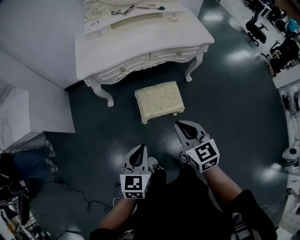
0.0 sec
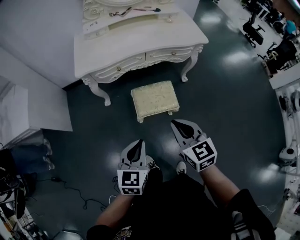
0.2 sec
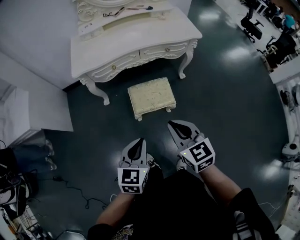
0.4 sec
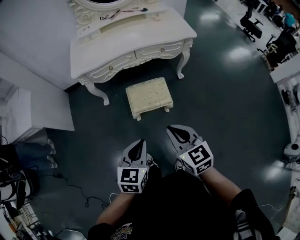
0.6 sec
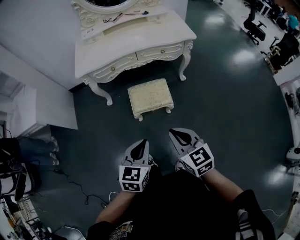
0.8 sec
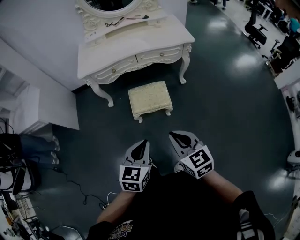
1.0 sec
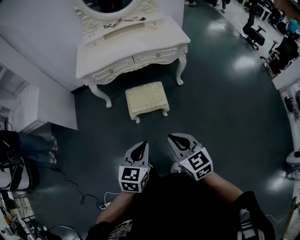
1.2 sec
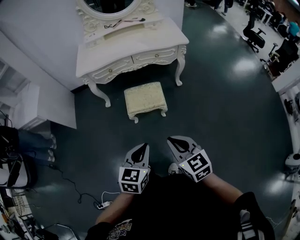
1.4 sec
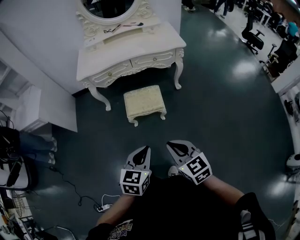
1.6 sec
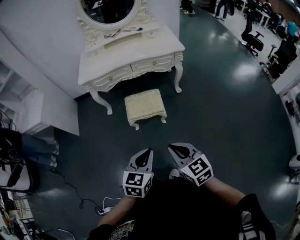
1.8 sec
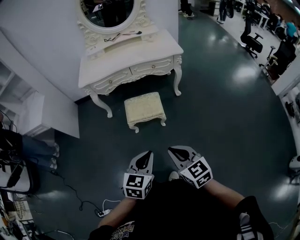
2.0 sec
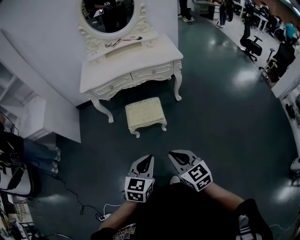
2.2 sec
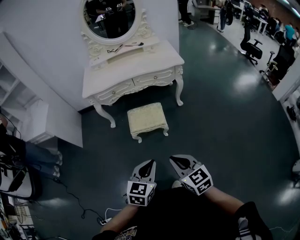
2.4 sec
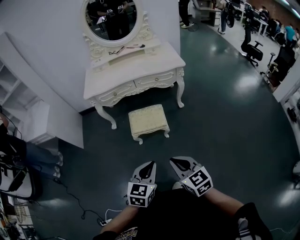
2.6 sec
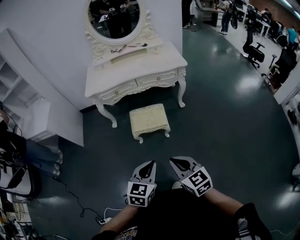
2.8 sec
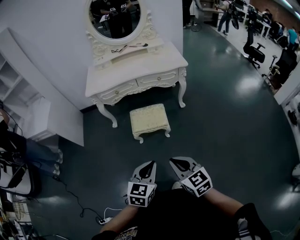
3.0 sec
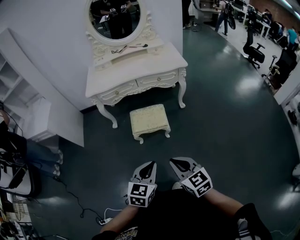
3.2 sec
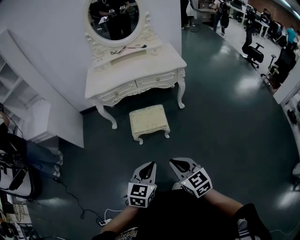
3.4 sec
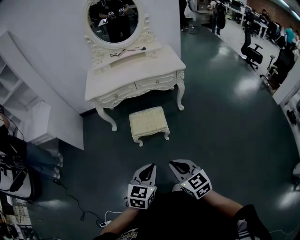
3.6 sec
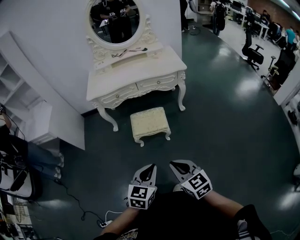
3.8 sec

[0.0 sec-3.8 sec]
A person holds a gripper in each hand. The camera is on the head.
0.0 sec to 1.2 sec: The right gripper shifts approximately 25 cm backward and to the right; the left gripper goes some 25 cm to the right, backward and upward.
1.2 sec to 2.6 sec: The left gripper is displaced backward and to the right by roughly 10 cm, while the right gripper travels backward by some 5 cm.
2.6 sec to 3.8 sec: There are only small adjustments of the grippers.

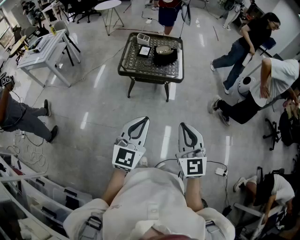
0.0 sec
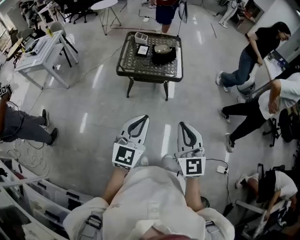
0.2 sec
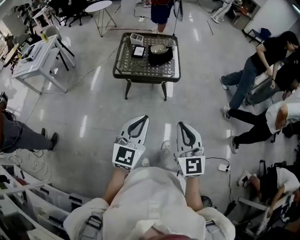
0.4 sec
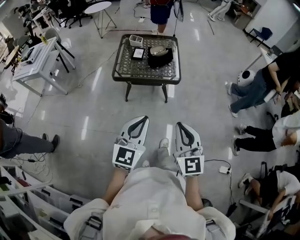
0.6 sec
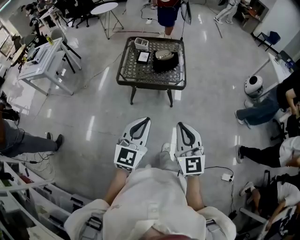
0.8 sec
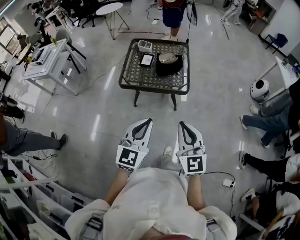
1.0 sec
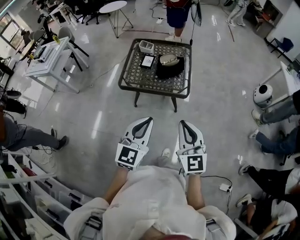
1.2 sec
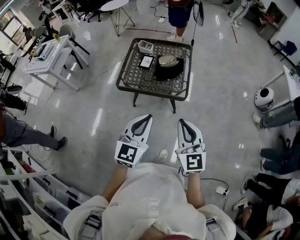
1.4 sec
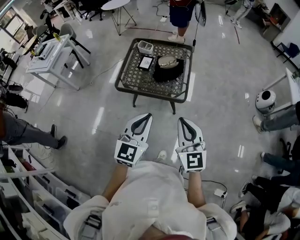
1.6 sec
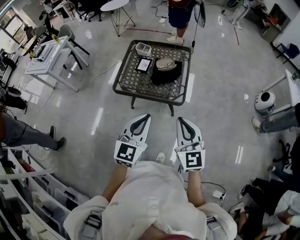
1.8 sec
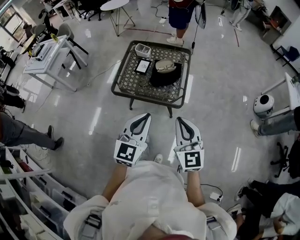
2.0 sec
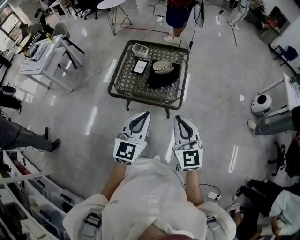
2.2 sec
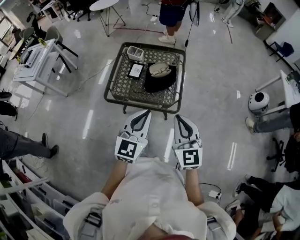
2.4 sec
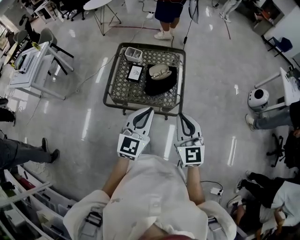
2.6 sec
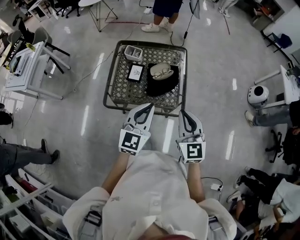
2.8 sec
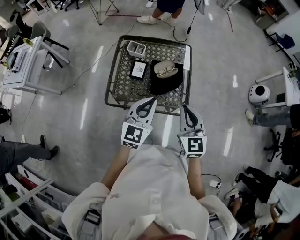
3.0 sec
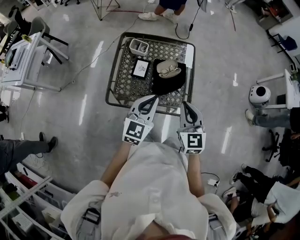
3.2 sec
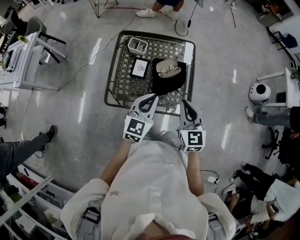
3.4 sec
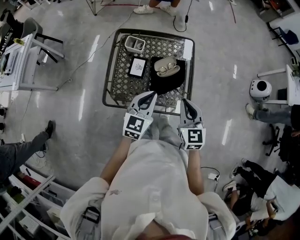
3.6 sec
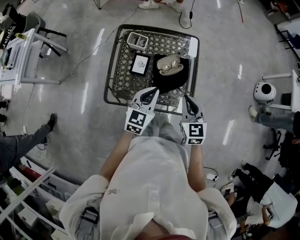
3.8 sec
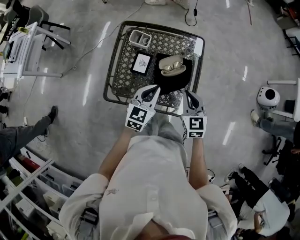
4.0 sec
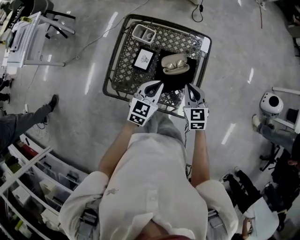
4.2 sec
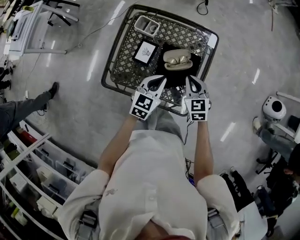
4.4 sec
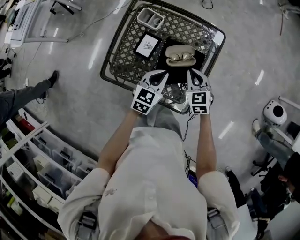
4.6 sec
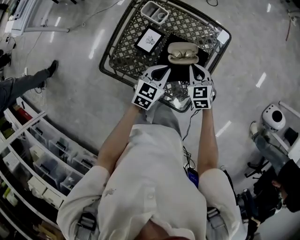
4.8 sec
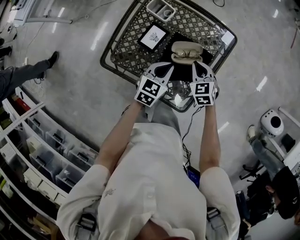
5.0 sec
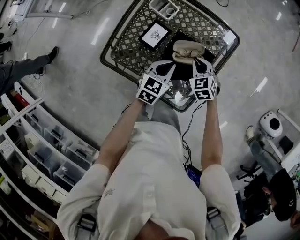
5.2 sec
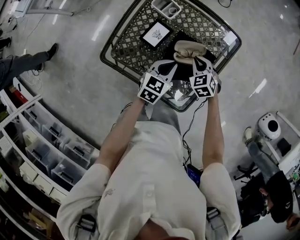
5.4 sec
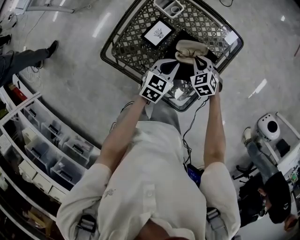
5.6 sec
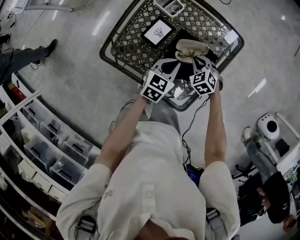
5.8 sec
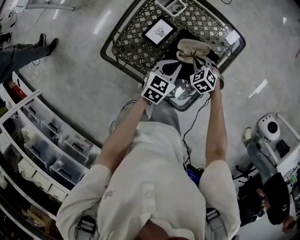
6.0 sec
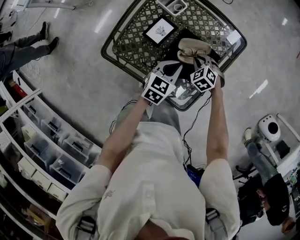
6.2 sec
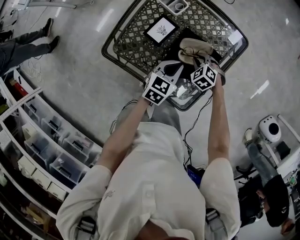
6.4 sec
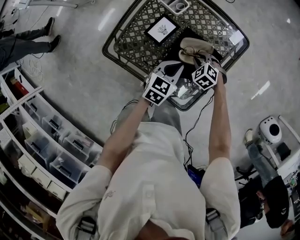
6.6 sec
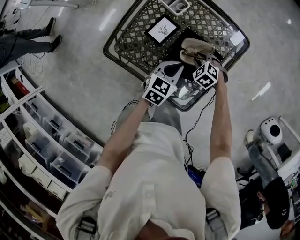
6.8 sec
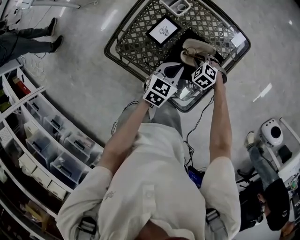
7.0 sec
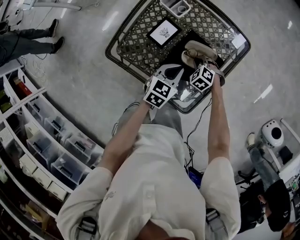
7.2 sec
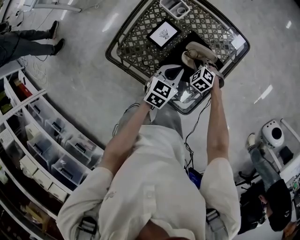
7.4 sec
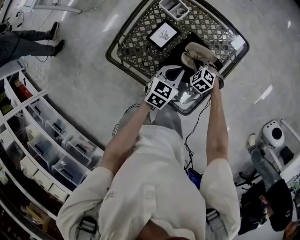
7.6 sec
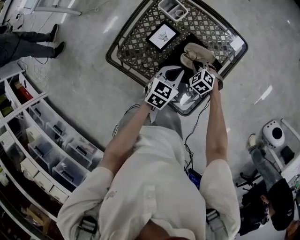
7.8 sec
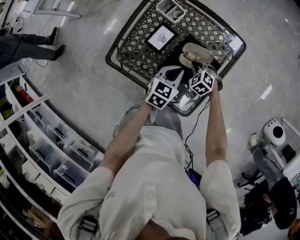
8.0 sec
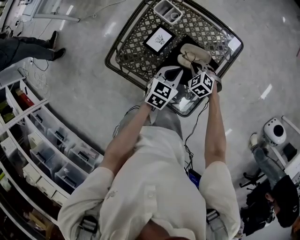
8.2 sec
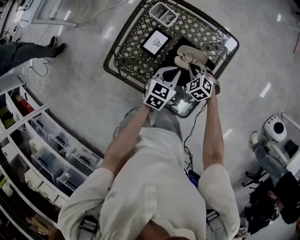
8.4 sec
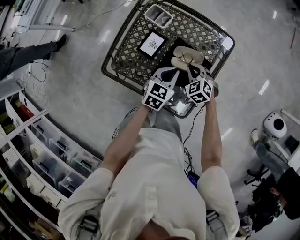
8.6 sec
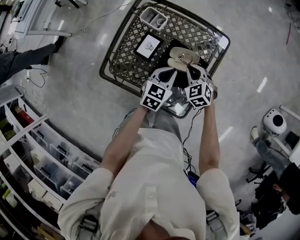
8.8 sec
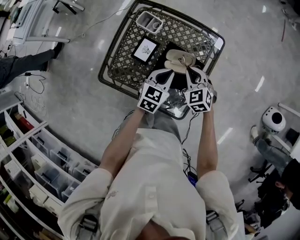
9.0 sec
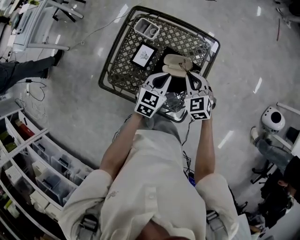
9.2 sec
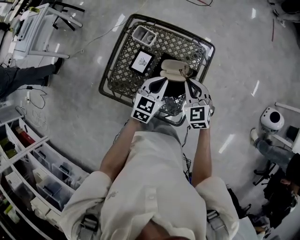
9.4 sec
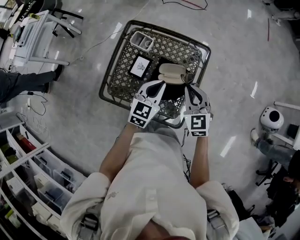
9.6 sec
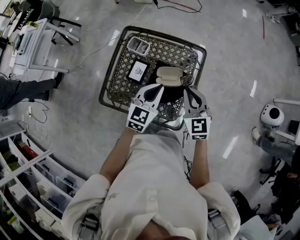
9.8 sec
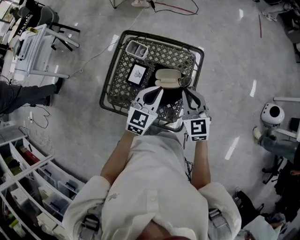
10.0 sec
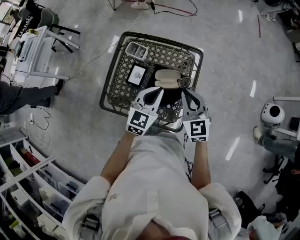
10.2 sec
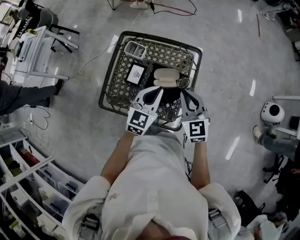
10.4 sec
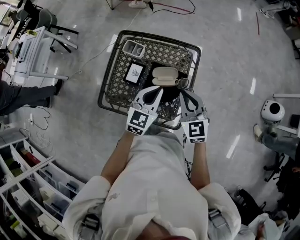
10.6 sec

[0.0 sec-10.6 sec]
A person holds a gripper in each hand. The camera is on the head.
0.0 sec to 1.6 sec: The grippers both shift forward by roughly 30 cm.
1.6 sec to 3.0 sec: The grippers both shift forward by some 25 cm.
3.0 sec to 4.6 sec: The left gripper shifts roughly 30 cm downward and forward, and changes its angle by approximately 30 degrees; the right gripper shifts about 35 cm forward and downward, and rotates approximately 30 degrees.
4.6 sec to 6.0 sec: The right gripper travels downward by about 15 cm, and turns by roughly 40 degrees; the left gripper is displaced downward by some 5 cm.
6.0 sec to 7.6 sec: The grippers make only small movements.
7.6 sec to 9.0 sec: The left gripper goes approximately 5 cm upward. The right gripper heads upward, covering approximately 15 cm, and swivels approximately 30 degrees.
9.0 sec to 10.6 sec: The left gripper shifts roughly 15 cm upward. The right gripper heads upward and backward, covering roughly 20 cm, and rotates some 30 degrees.

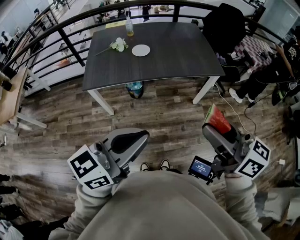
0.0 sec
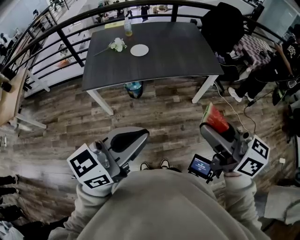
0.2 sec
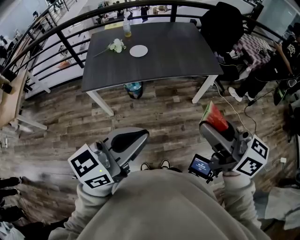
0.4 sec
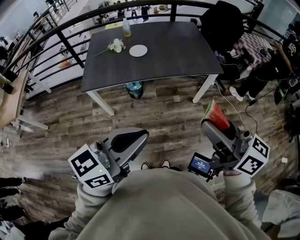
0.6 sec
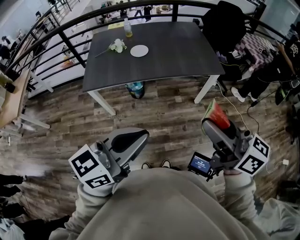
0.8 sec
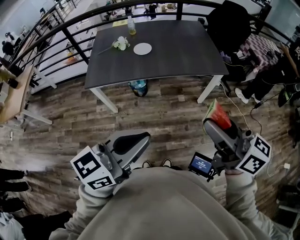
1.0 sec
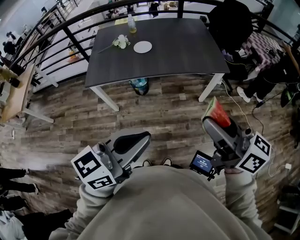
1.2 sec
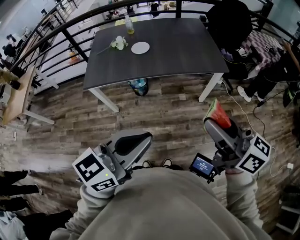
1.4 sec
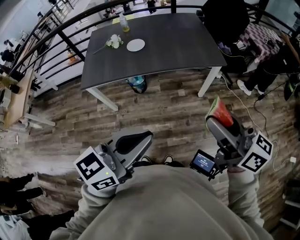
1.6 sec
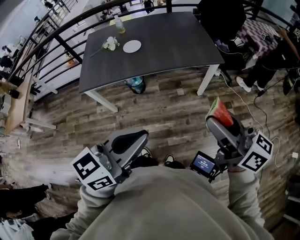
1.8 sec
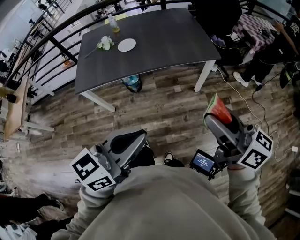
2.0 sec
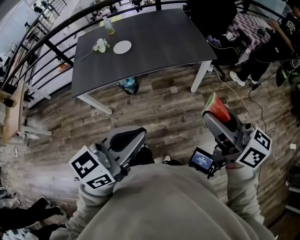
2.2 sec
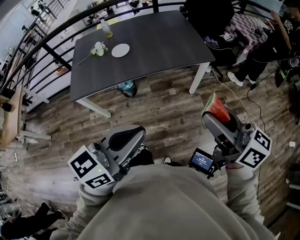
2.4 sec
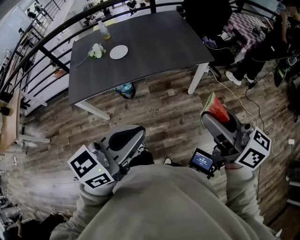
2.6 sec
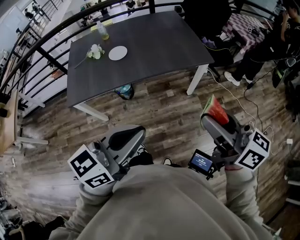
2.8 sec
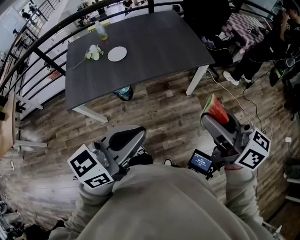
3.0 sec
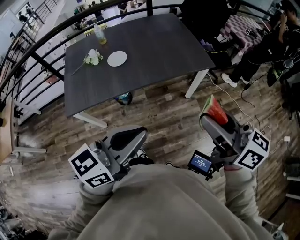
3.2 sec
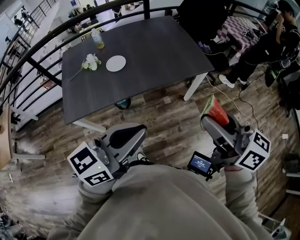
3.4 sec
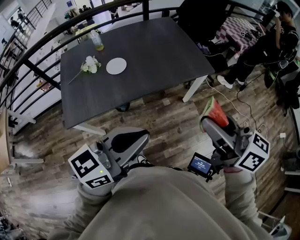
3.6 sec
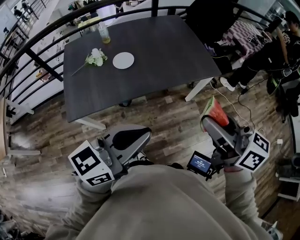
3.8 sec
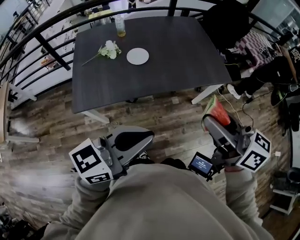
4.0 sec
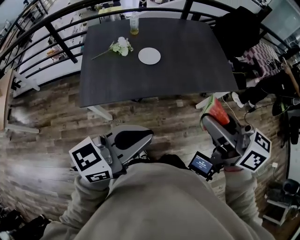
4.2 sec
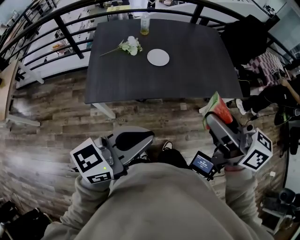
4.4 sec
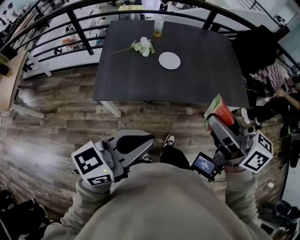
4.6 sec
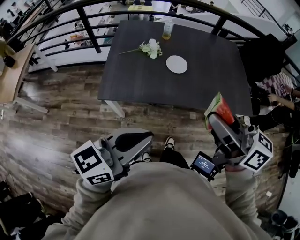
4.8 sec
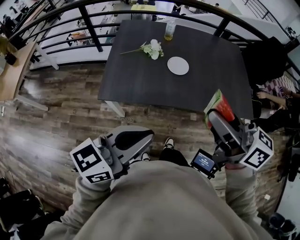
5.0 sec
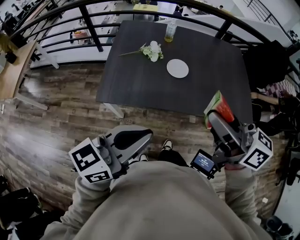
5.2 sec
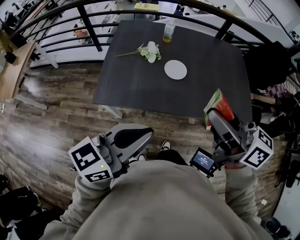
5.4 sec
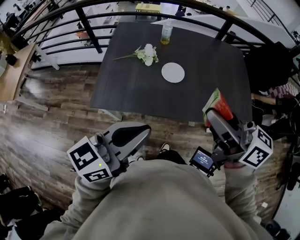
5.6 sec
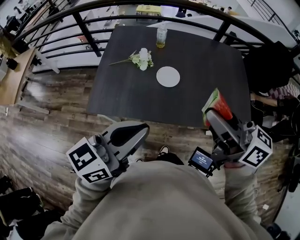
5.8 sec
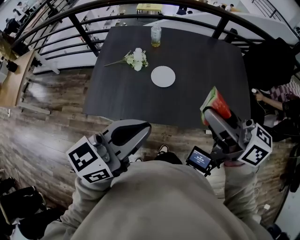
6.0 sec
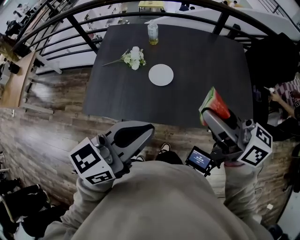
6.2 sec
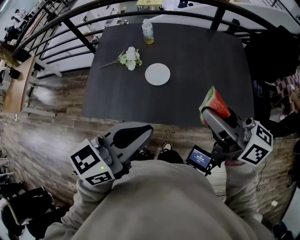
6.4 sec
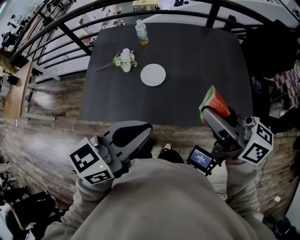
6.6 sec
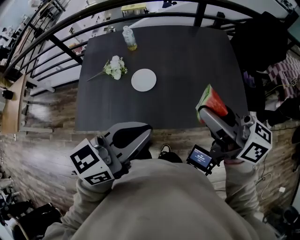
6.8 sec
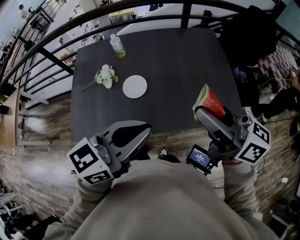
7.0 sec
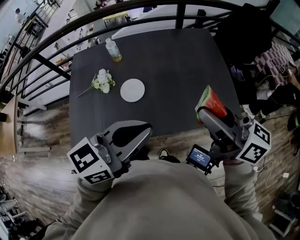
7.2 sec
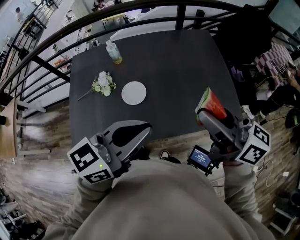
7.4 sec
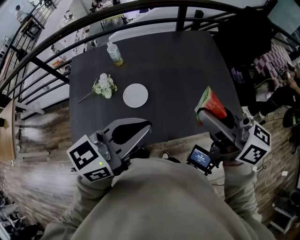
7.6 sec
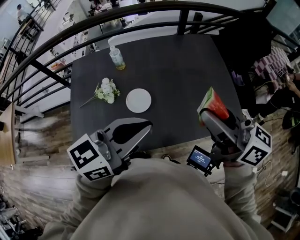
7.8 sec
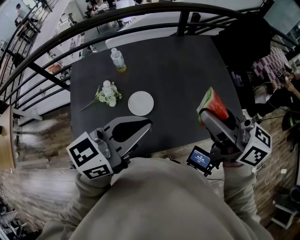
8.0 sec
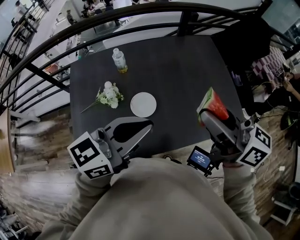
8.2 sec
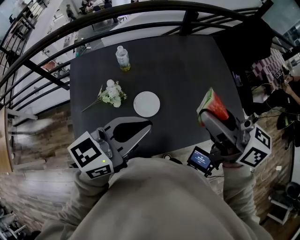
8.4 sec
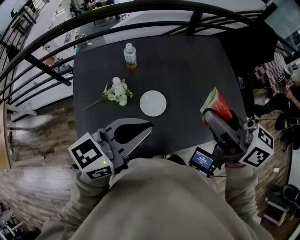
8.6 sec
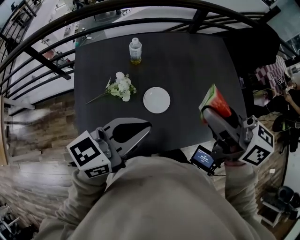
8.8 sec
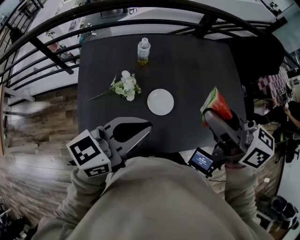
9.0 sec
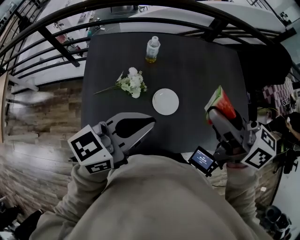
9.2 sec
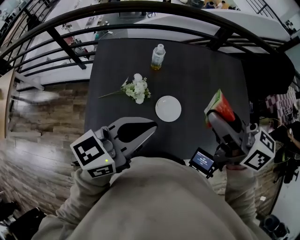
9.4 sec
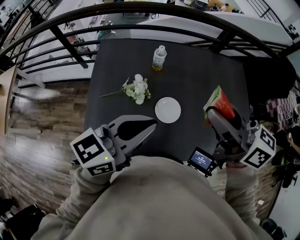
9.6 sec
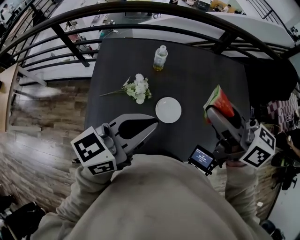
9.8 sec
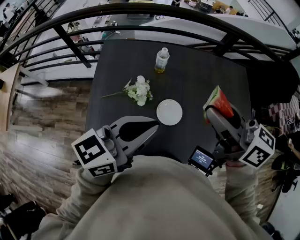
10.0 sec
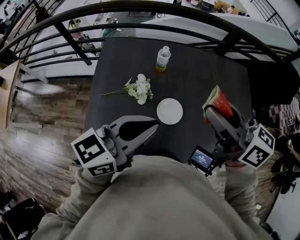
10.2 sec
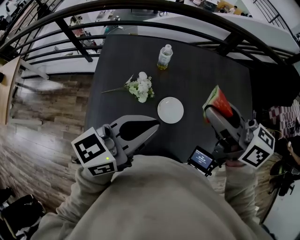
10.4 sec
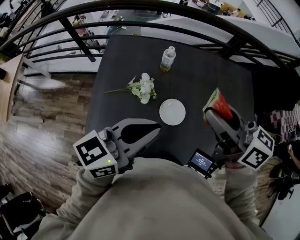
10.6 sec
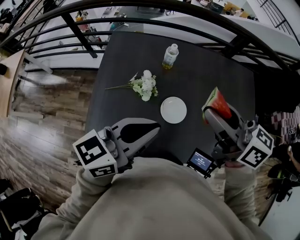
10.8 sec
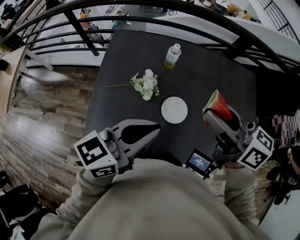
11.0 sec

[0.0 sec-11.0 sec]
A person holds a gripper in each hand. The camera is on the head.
0.0 sec to 1.6 sec: The grippers both shift to the right by roughly 10 cm.
1.6 sec to 3.2 sec: Both grippers move forward and to the left, about 10 cm.
3.2 sec to 4.8 sec: Both grippers travel together to the left, some 25 cm. The right gripper rotates approximately 20 degrees.
4.8 sec to 6.2 sec: The right gripper is displaced forward and to the right by about 20 cm. Meanwhile the left gripper moves to the right and forward, roughly 20 cm.
6.2 sec to 7.8 sec: The left gripper heads forward, covering about 15 cm; the right gripper heads forward, covering roughly 10 cm.
7.8 sec to 9.4 sec: Both grippers travel together to the left, approximately 20 cm.
9.4 sec to 11.0 sec: The grippers move only a little.
